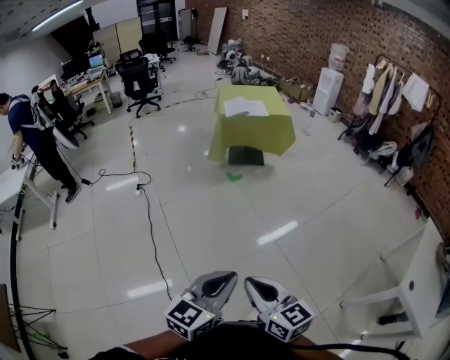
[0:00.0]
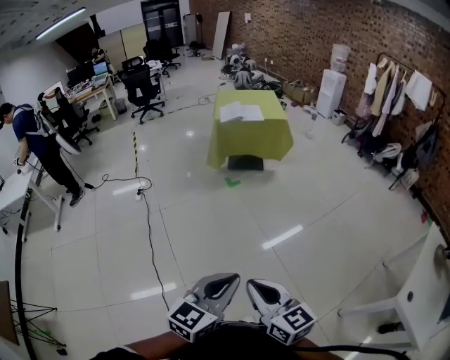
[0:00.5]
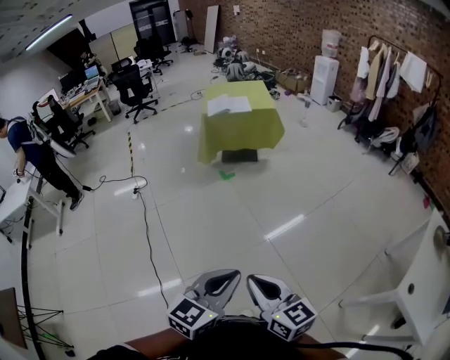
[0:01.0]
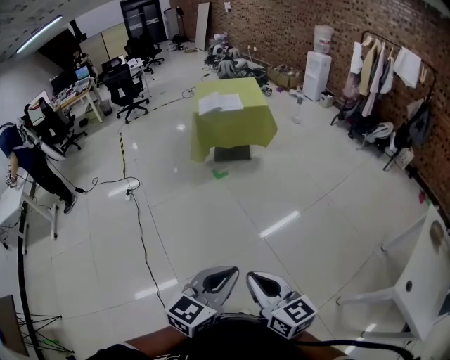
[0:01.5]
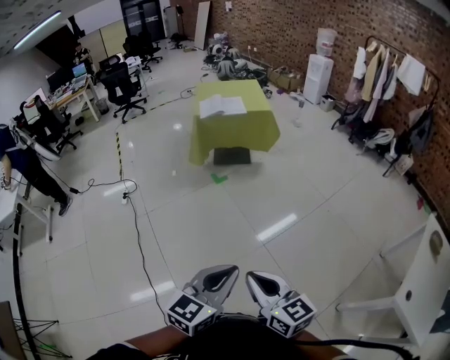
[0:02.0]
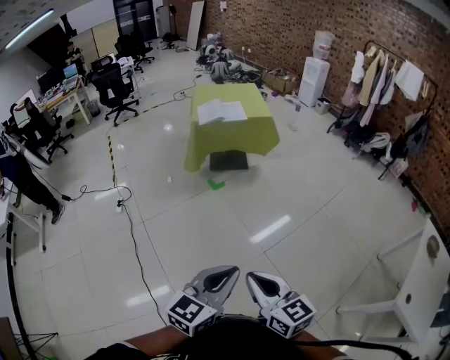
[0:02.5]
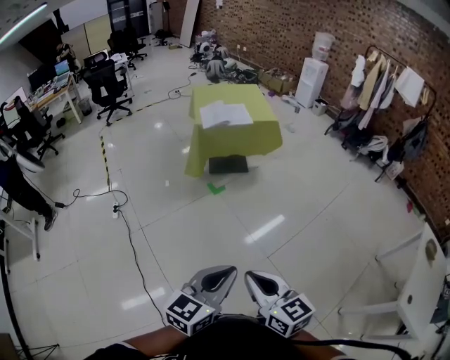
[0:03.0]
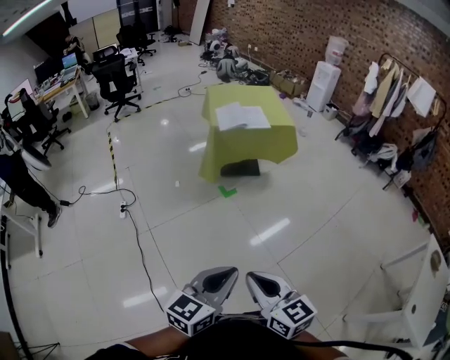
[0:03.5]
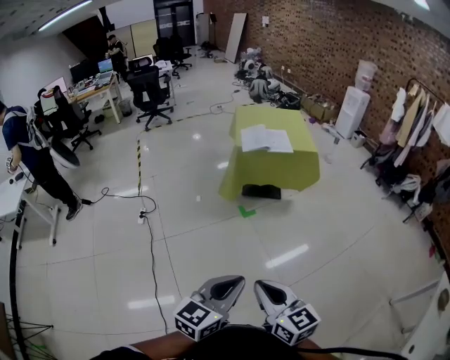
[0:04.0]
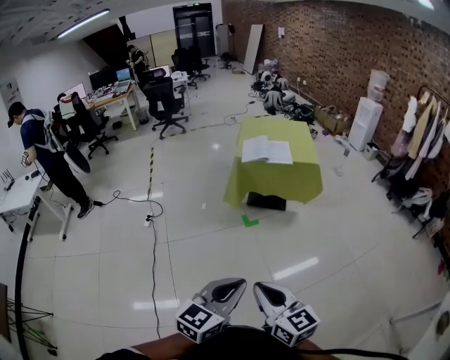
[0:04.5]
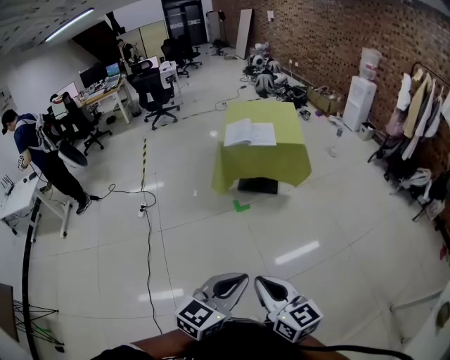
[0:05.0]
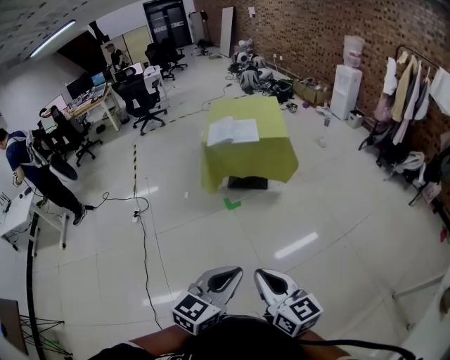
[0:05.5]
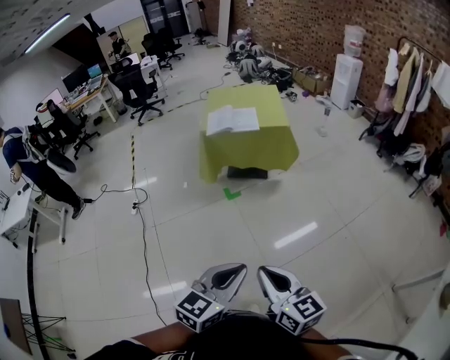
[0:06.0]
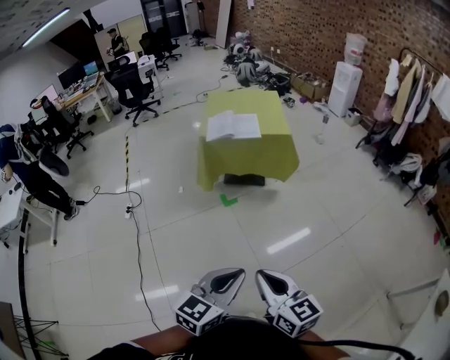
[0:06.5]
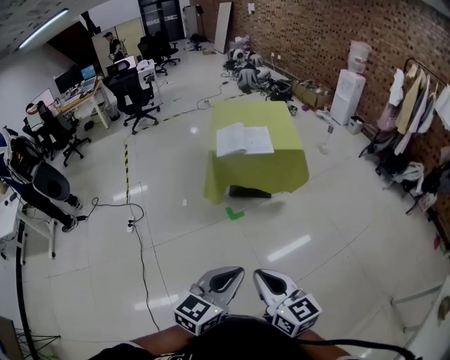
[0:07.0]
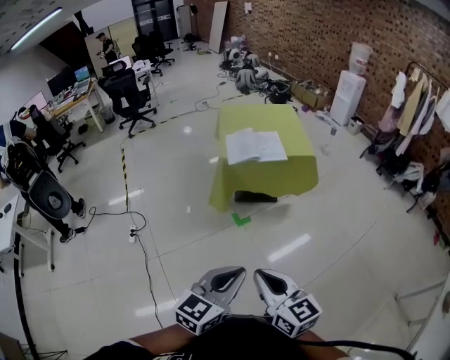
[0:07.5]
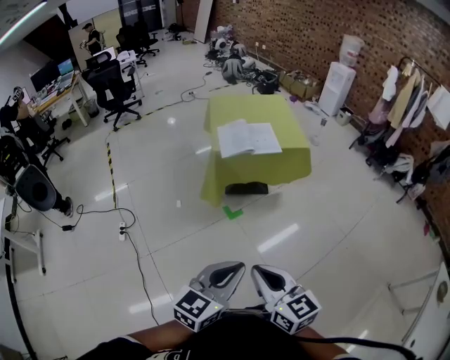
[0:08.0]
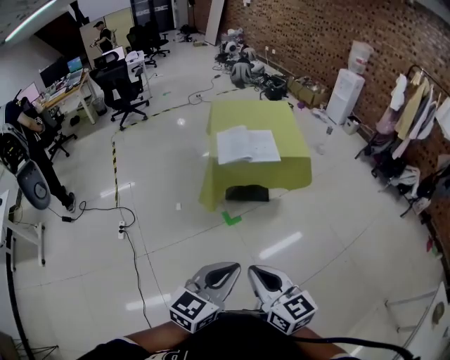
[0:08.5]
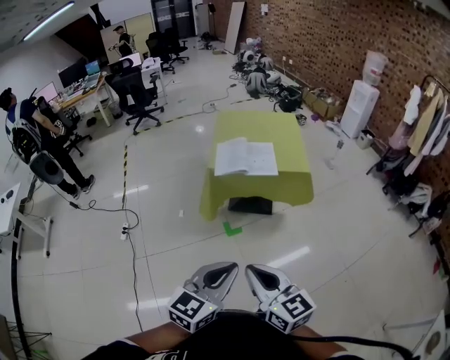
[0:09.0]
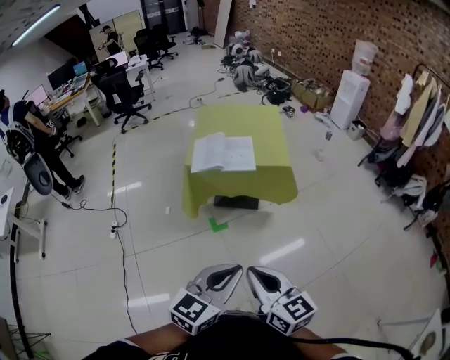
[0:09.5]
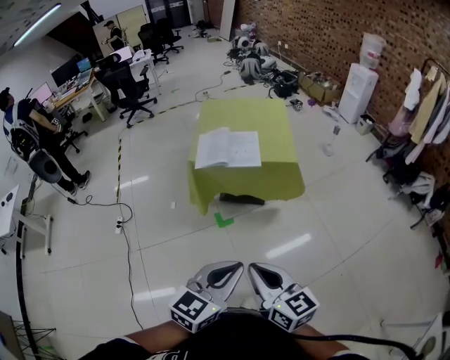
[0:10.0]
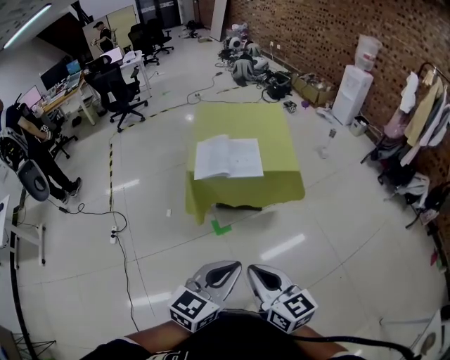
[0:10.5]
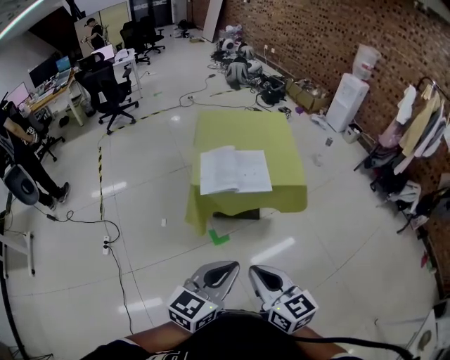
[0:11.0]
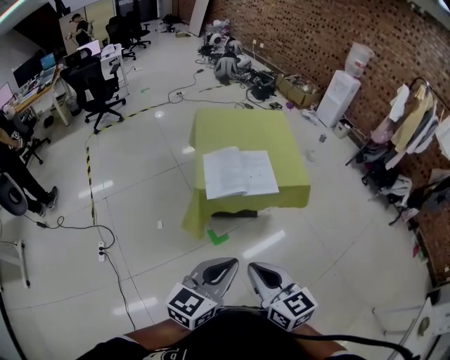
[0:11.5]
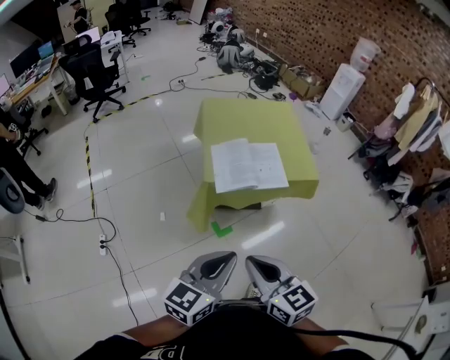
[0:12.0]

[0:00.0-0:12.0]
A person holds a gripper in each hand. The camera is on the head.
0:00.0 to 0:02.0: The two grippers go some 20 cm to the right and forward.
0:02.0 to 0:04.0: The grippers both shift forward and to the left by roughly 30 cm.
0:04.0 to 0:06.0: Both grippers travel together to the right, some 30 cm.
0:06.0 to 0:08.0: The two grippers go about 35 cm to the left and forward.
0:08.0 to 0:10.0: The grippers both shift to the right and forward by about 25 cm.
0:10.0 to 0:12.0: The grippers both shift to the left and forward by approximately 35 cm.

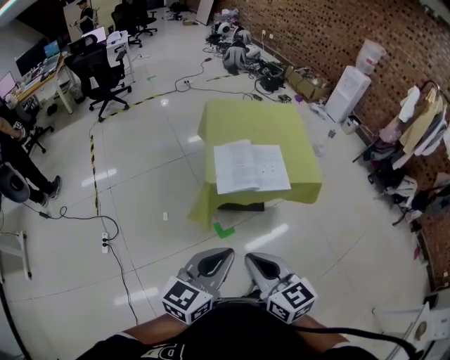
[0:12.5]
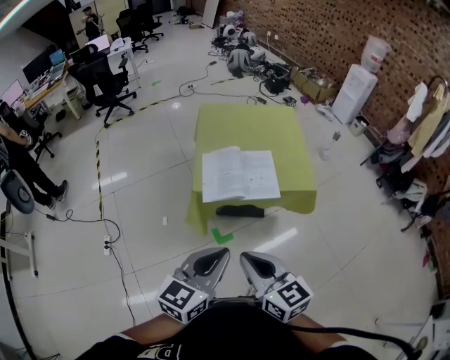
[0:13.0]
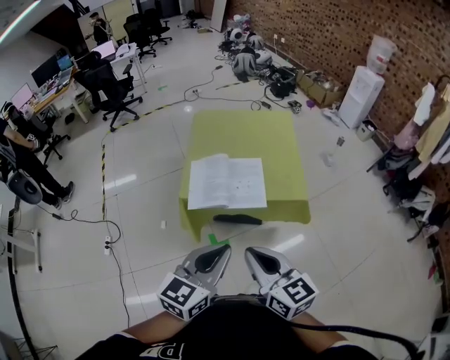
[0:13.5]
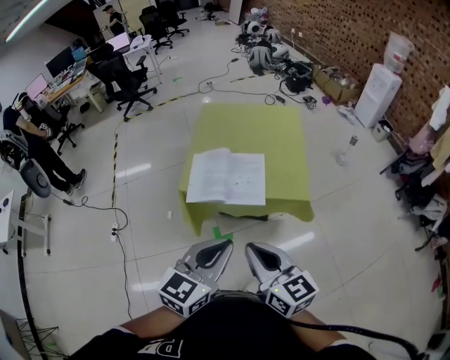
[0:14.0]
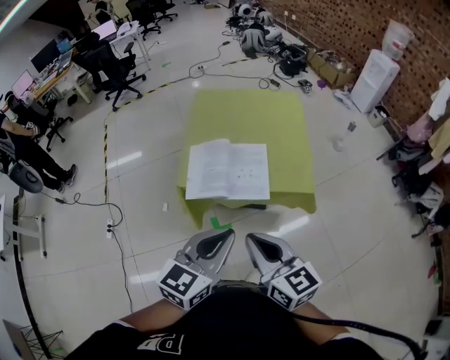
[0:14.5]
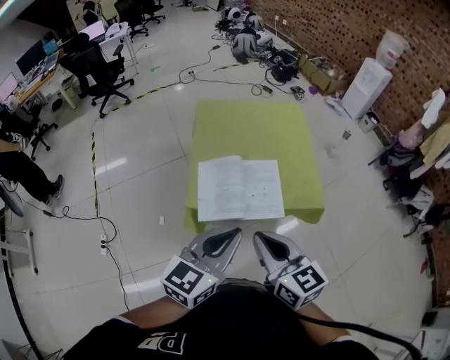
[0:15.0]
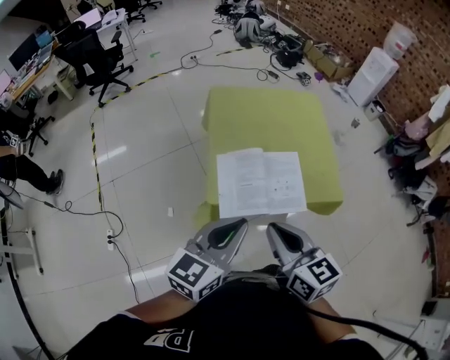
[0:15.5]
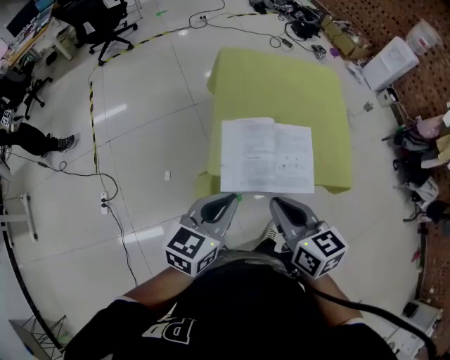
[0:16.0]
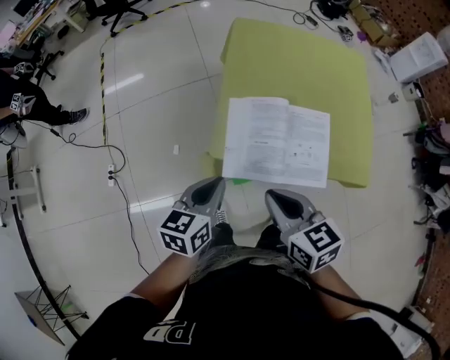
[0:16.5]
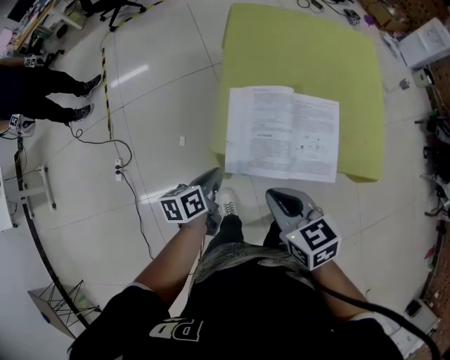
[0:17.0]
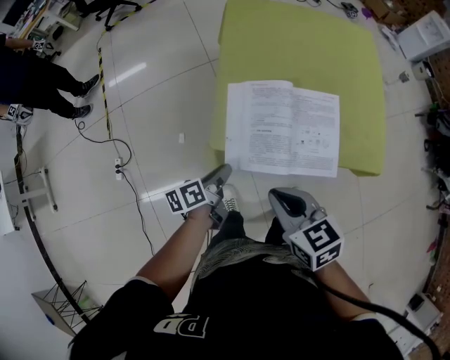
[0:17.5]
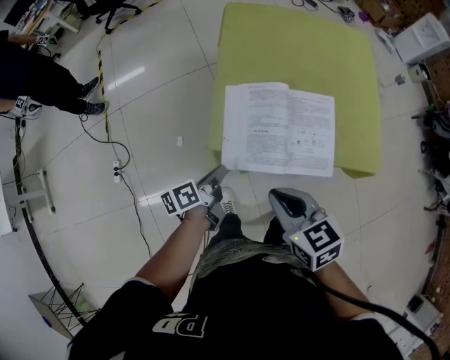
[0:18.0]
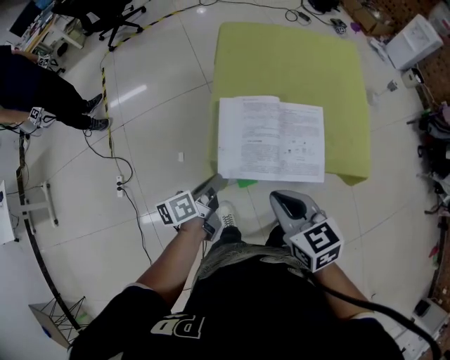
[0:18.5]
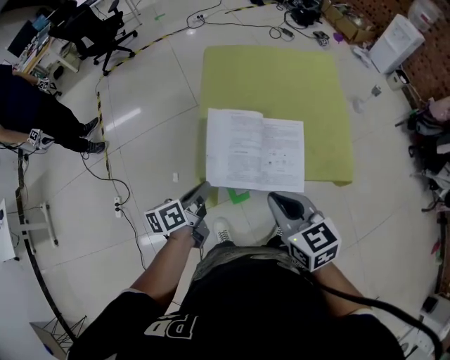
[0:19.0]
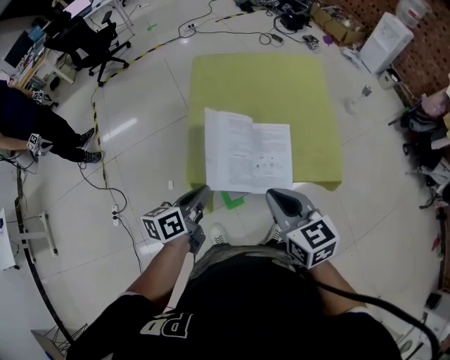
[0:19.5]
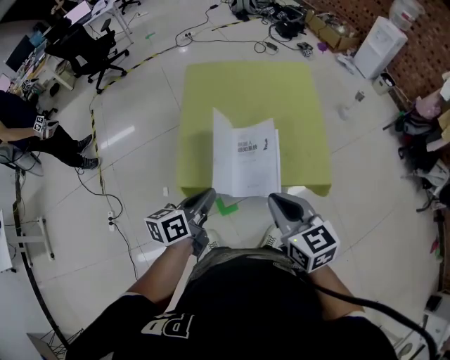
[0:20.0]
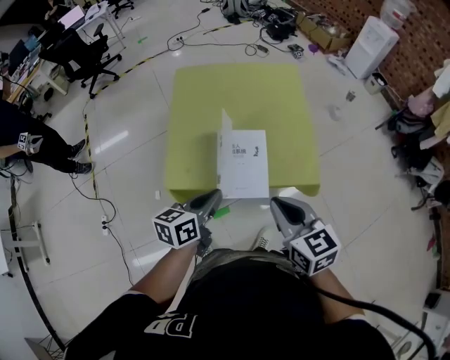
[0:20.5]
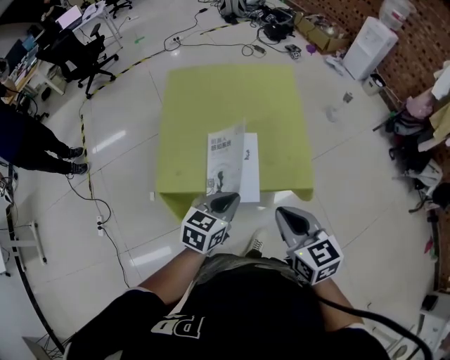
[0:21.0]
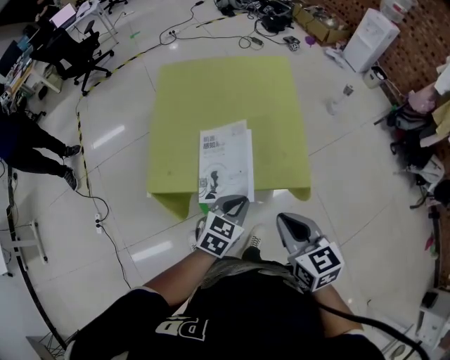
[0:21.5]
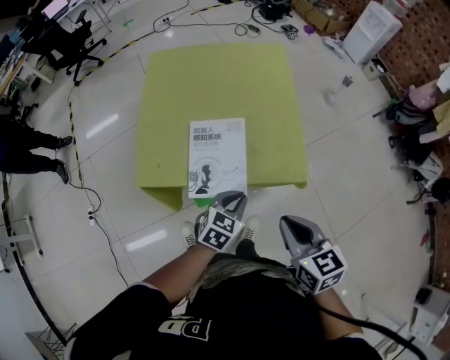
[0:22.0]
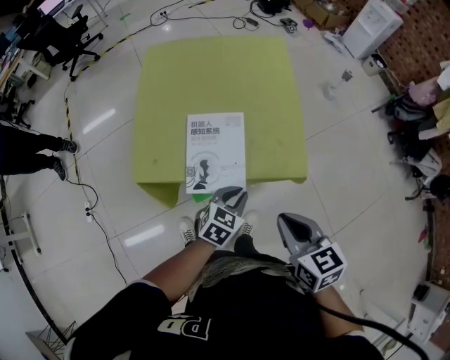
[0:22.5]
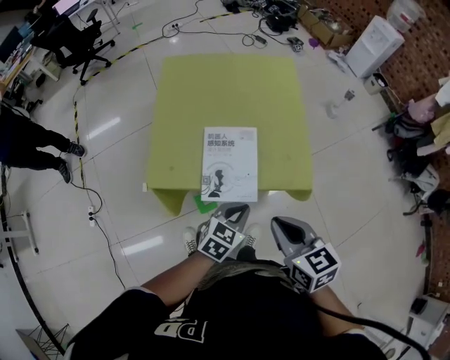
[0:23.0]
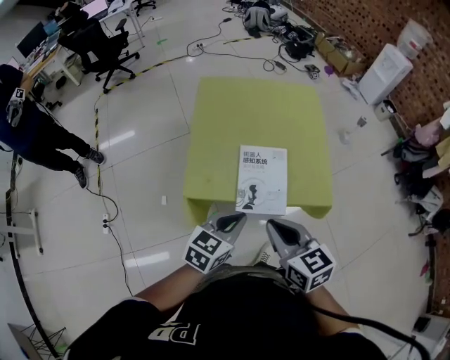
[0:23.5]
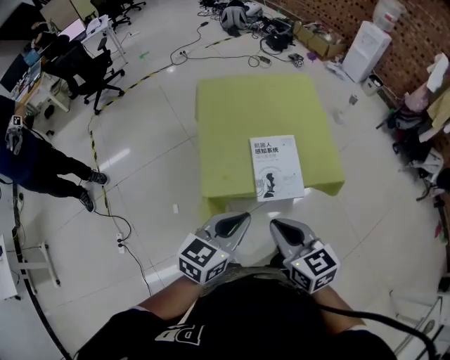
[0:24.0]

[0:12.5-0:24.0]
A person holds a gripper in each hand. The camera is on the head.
0:12.5 to 0:14.5: The grippers both shift to the right and forward by approximately 25 cm.
0:14.5 to 0:16.5: The left gripper shifts some 30 cm to the left, downward and forward, and changes its angle by about 30 degrees; the right gripper is displaced forward, to the left and downward by some 25 cm, and changes its angle by approximately 20 degrees.
0:16.5 to 0:18.5: The left gripper goes approximately 5 cm downward, swivels approximately 40 degrees, and opens, then closes once more.
0:18.5 to 0:20.0: Both grippers move to the right and upward, about 15 cm. The left gripper swivels some 20 degrees.
0:20.0 to 0:22.0: The left gripper is displaced to the right and downward by some 25 cm, and twists some 40 degrees clockwise, seen from behind. Meanwhile the right gripper moves to the right, about 15 cm.
0:22.0 to 0:24.0: The left gripper travels to the left, upward and backward by approximately 30 cm, and turns by approximately 20 degrees. Meanwhile the right gripper shifts about 25 cm to the left.

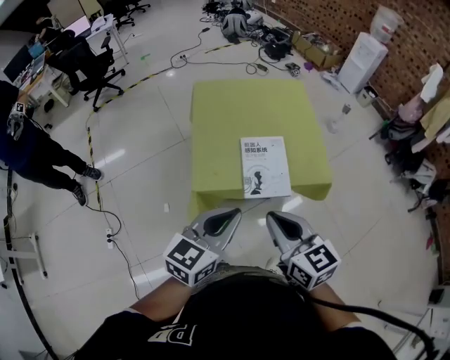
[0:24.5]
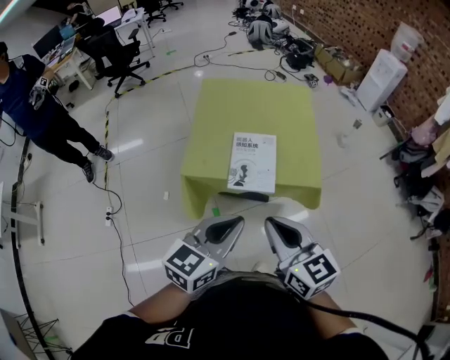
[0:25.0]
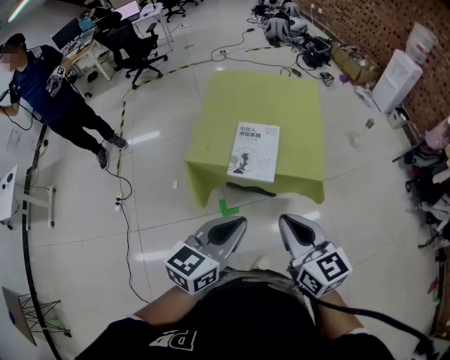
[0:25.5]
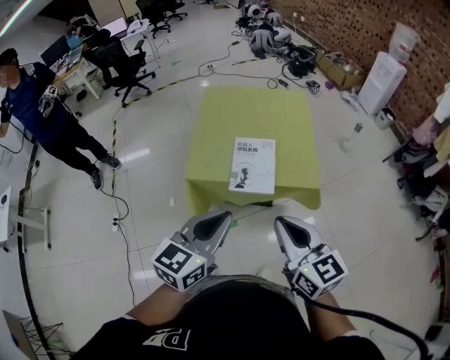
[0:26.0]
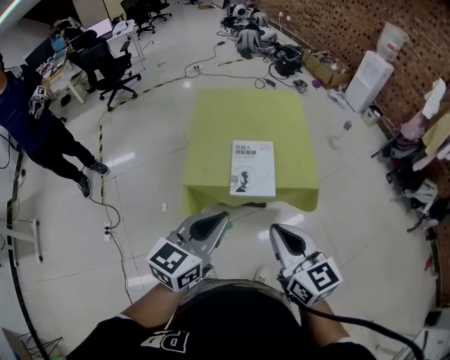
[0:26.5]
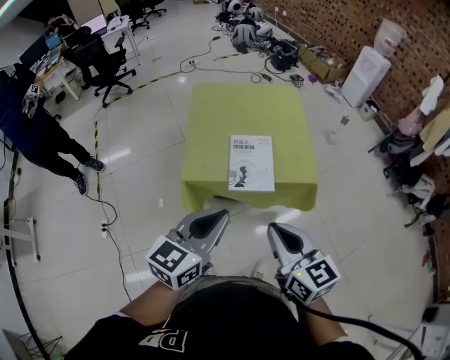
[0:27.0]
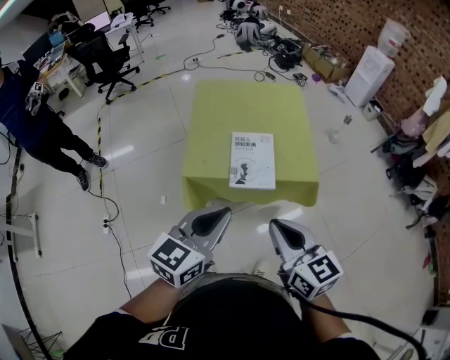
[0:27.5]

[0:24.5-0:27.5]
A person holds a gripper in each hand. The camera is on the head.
0:24.5 to 0:26.0: Both grippers move to the right and backward, some 15 cm.
0:26.0 to 0:27.5: The right gripper changes place by about 5 cm.
